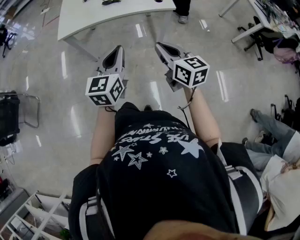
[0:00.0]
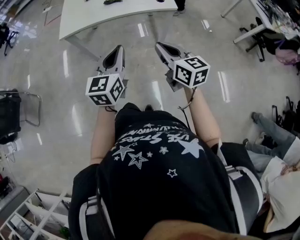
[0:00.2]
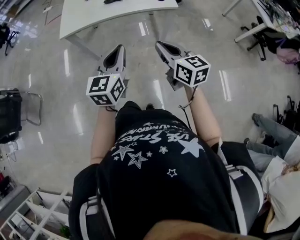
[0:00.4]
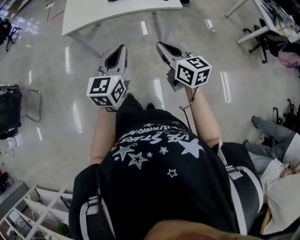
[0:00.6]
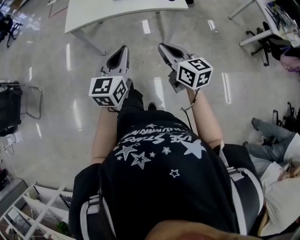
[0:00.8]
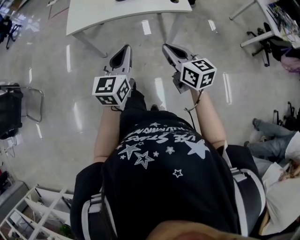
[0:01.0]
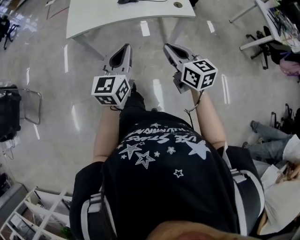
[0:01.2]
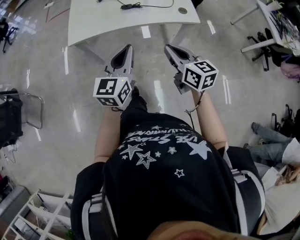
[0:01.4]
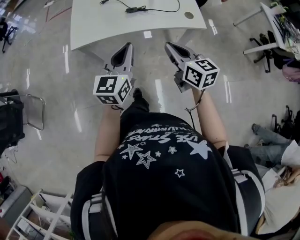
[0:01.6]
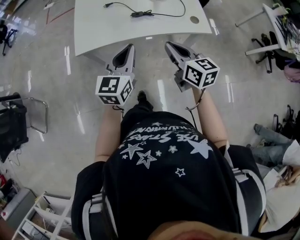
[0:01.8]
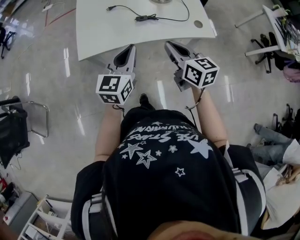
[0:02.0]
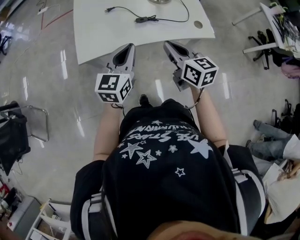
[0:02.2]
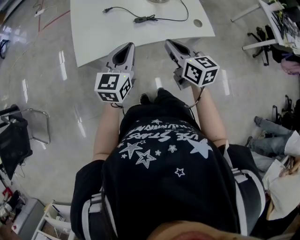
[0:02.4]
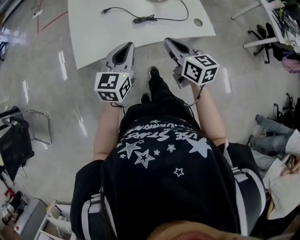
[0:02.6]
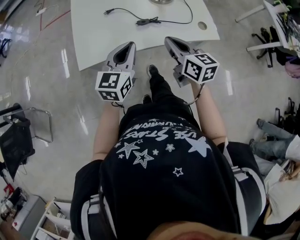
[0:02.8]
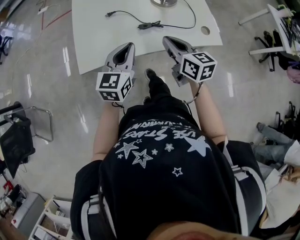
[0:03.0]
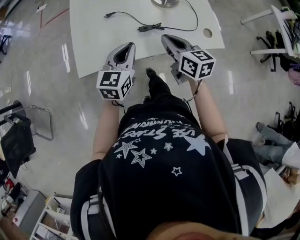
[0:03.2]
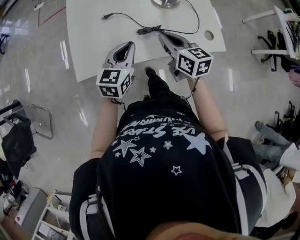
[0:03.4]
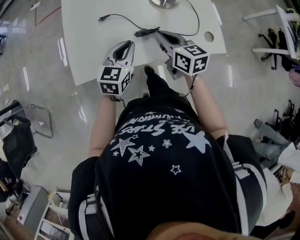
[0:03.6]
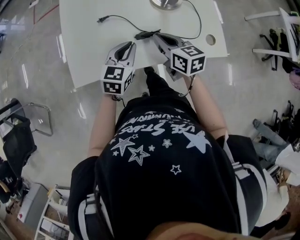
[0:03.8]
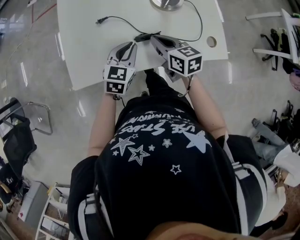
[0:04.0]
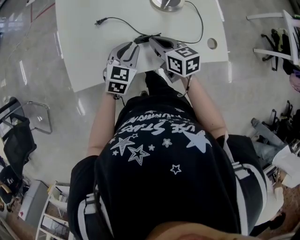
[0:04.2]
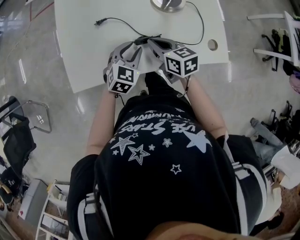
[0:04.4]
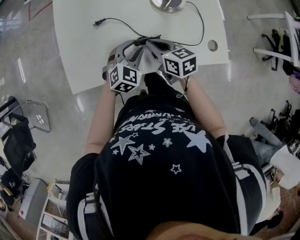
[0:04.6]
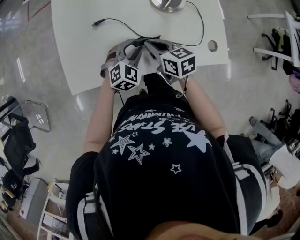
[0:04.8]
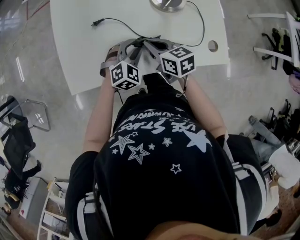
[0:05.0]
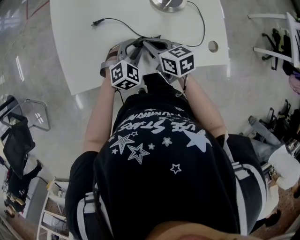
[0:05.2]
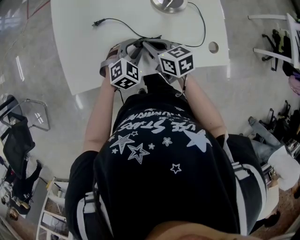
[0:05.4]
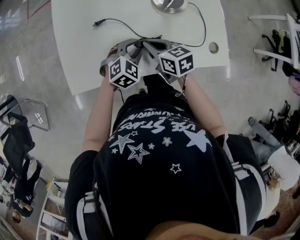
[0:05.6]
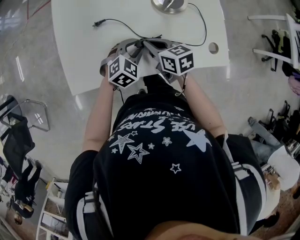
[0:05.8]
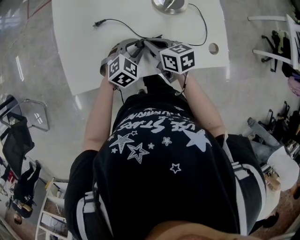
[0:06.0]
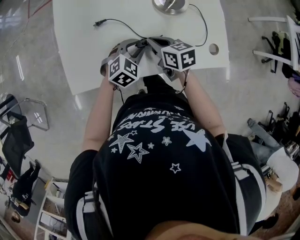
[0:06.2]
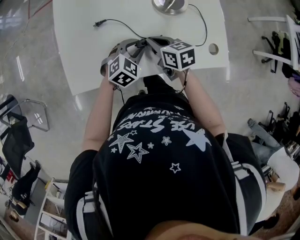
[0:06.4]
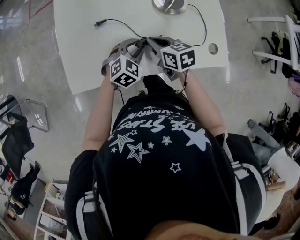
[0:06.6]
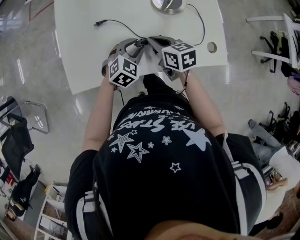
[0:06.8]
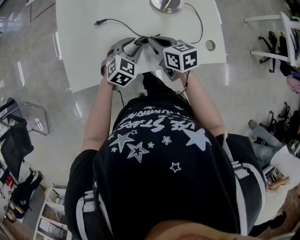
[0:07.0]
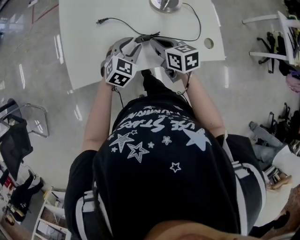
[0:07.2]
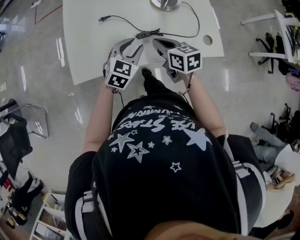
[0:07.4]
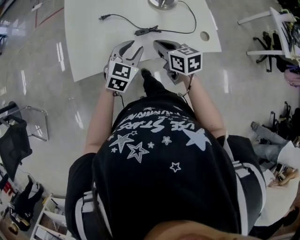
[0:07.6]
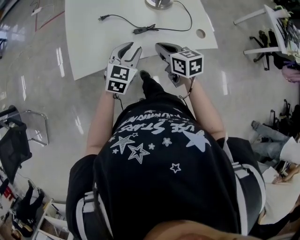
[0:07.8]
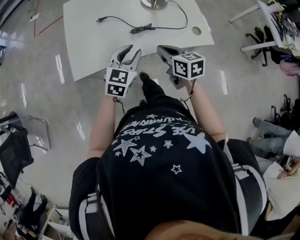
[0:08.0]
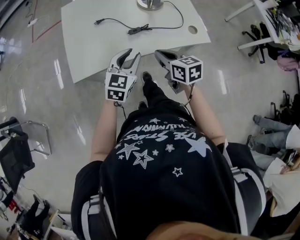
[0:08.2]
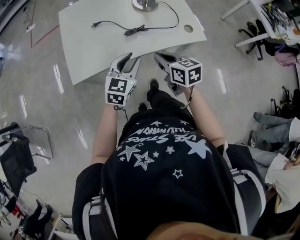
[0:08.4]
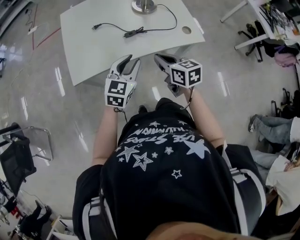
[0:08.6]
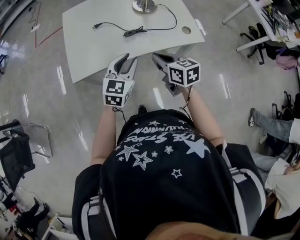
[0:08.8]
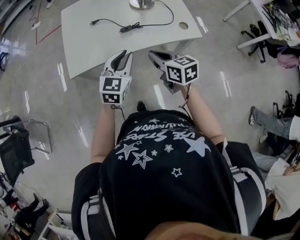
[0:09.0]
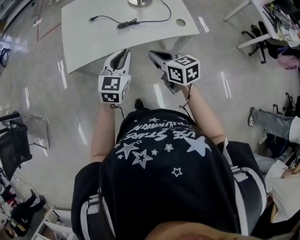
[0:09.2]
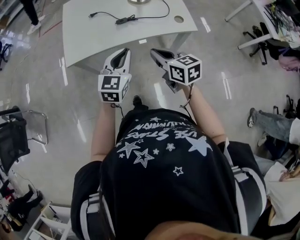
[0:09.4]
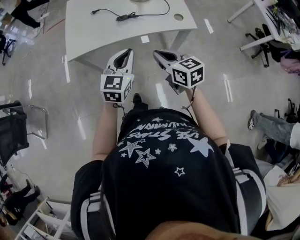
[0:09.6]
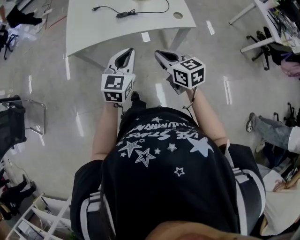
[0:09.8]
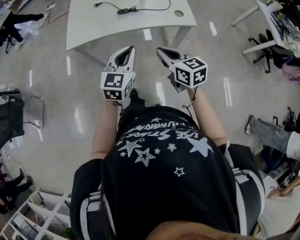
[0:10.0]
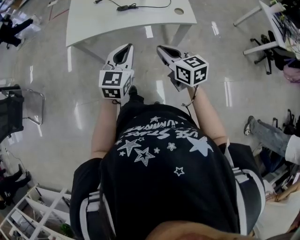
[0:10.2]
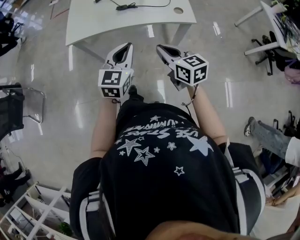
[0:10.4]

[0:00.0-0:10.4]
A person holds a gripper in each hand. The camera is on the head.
0.0 to 1.4 s: The grippers both shift forward and to the left by roughly 15 cm.
1.4 to 3.0 s: The grippers both shift forward by some 25 cm.
3.0 to 4.4 s: The left gripper travels downward, forward and to the right by some 20 cm, turns by approximately 30 degrees, and opens up. Meanwhile the right gripper shifts approximately 20 cm forward and downward.
6.0 to 7.4 s: The right gripper heads backward, covering about 5 cm. The left gripper moves upward and backward, approximately 10 cm.
7.4 to 9.0 s: Both grippers move backward and upward, about 20 cm.
9.0 to 10.4 s: Both grippers travel together backward and to the right, some 15 cm.

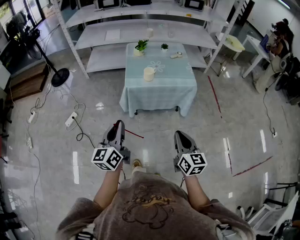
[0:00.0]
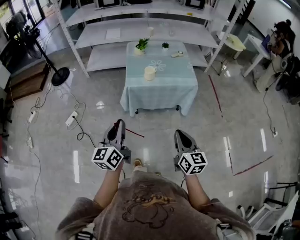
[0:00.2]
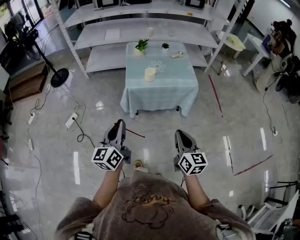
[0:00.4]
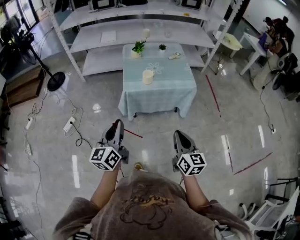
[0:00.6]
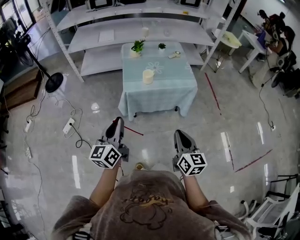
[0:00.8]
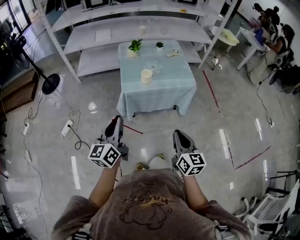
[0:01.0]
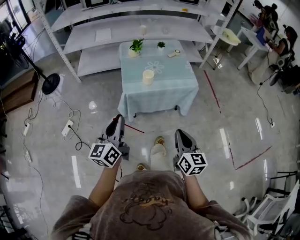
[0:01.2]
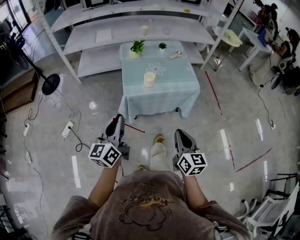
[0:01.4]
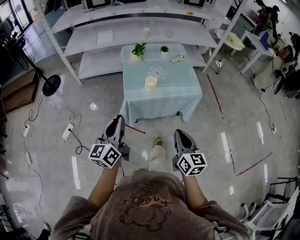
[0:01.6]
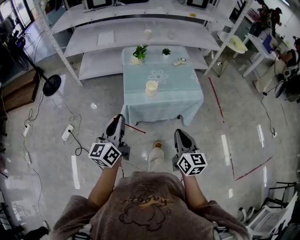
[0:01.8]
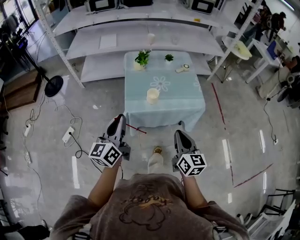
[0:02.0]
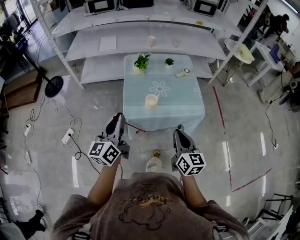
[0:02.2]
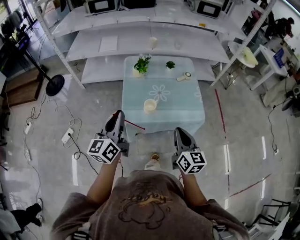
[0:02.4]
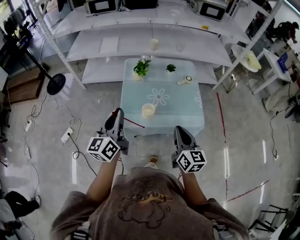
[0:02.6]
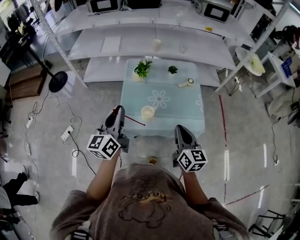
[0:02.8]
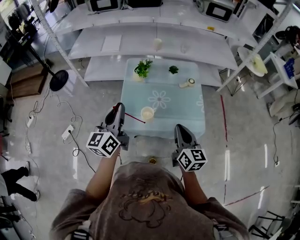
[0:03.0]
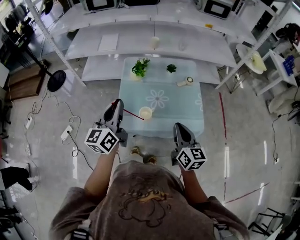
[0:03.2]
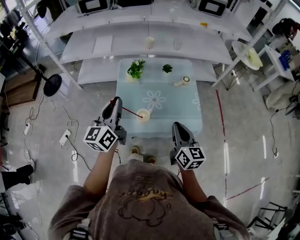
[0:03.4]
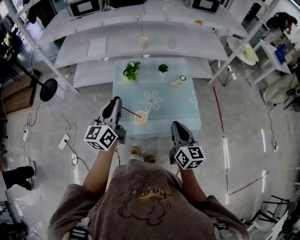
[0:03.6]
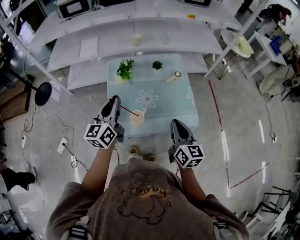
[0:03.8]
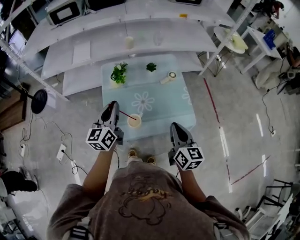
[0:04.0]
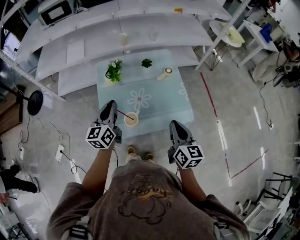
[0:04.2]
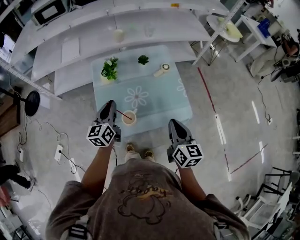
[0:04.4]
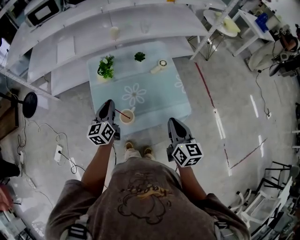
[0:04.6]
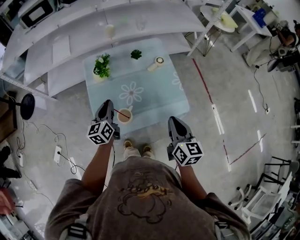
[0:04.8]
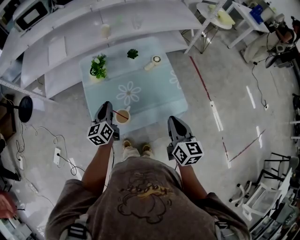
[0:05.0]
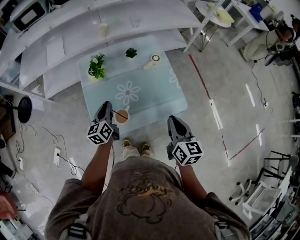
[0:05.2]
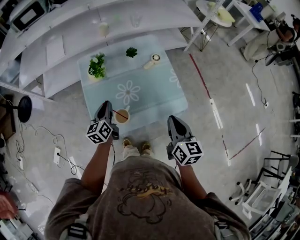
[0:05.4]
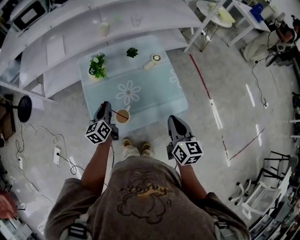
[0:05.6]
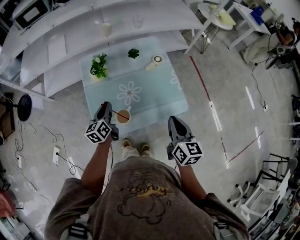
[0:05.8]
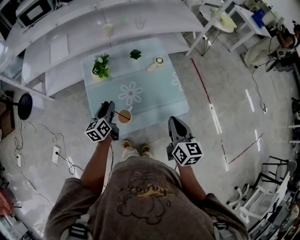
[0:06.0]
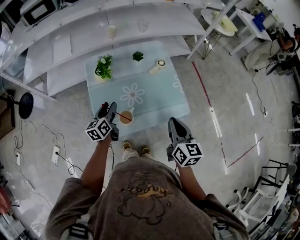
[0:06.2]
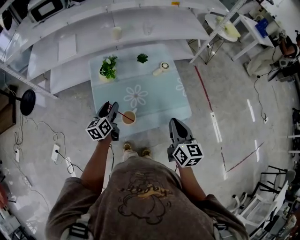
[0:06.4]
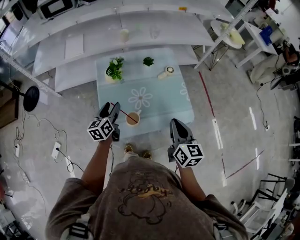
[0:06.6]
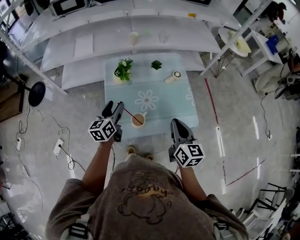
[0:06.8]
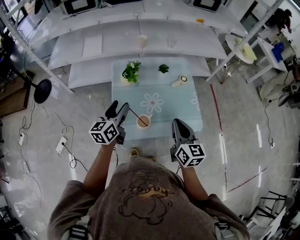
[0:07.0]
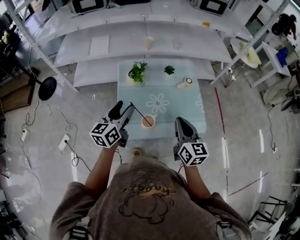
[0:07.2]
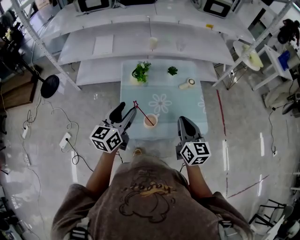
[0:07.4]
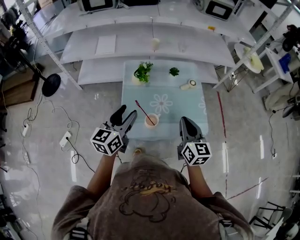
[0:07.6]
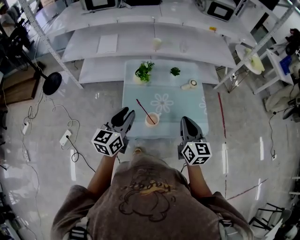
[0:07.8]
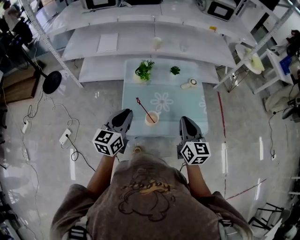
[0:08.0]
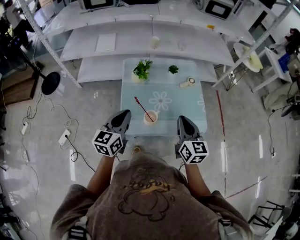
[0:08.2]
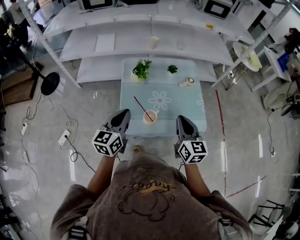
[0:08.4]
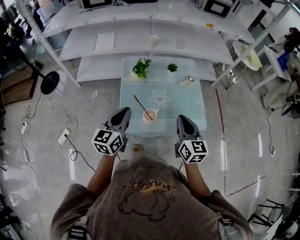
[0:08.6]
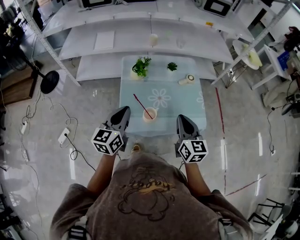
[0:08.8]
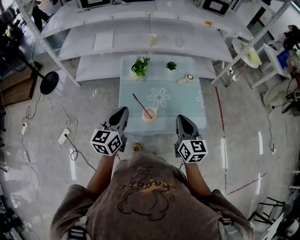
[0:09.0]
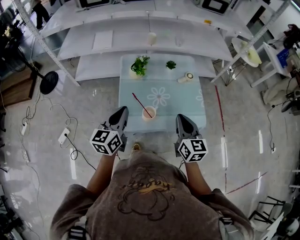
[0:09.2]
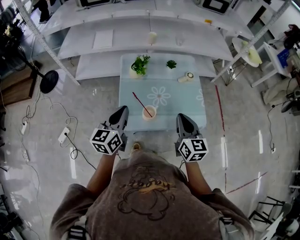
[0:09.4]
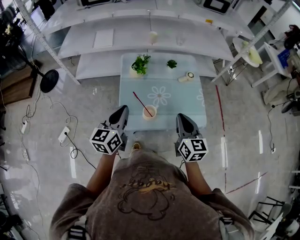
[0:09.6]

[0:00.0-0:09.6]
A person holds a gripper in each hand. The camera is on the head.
0.0 to 1.6 s: Both grippers move forward, approximately 15 cm.
1.6 to 3.2 s: Both grippers travel together forward, roughly 35 cm.
3.2 to 4.8 s: The left gripper goes some 25 cm downward and forward; the right gripper goes approximately 5 cm to the right.
4.8 to 6.4 s: The left gripper opens up.
6.4 to 8.0 s: The right gripper travels to the left by approximately 10 cm, while the left gripper goes some 20 cm upward and backward, and closes.
8.0 to 9.6 s: There are only small adjustments of the grippers.

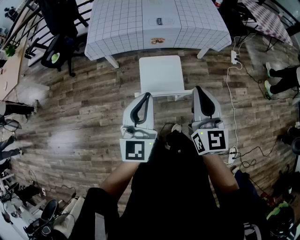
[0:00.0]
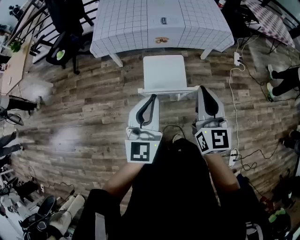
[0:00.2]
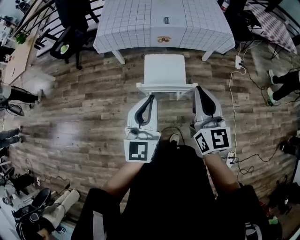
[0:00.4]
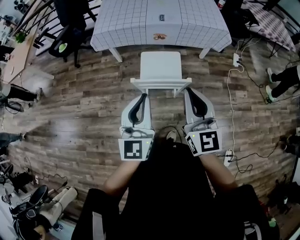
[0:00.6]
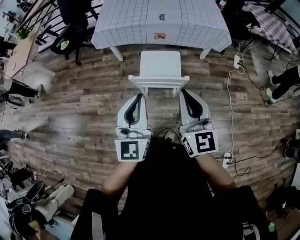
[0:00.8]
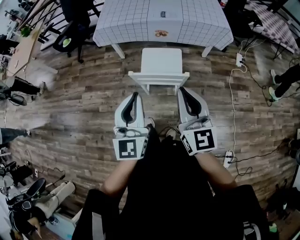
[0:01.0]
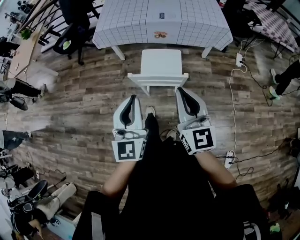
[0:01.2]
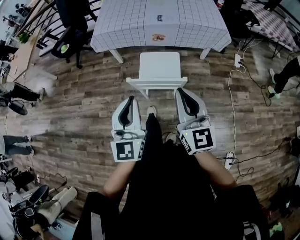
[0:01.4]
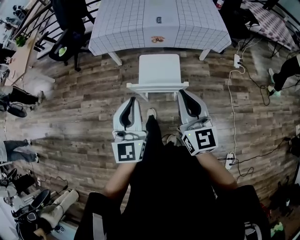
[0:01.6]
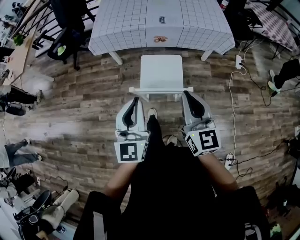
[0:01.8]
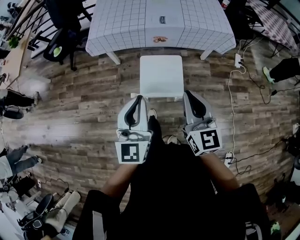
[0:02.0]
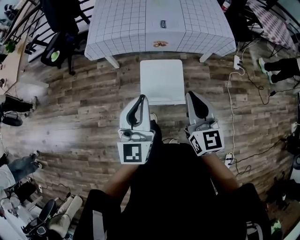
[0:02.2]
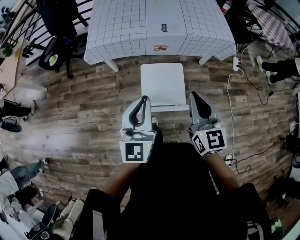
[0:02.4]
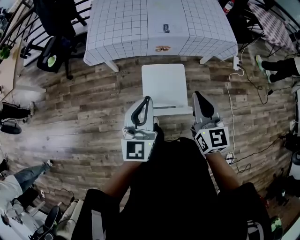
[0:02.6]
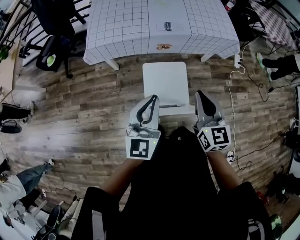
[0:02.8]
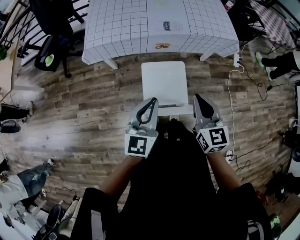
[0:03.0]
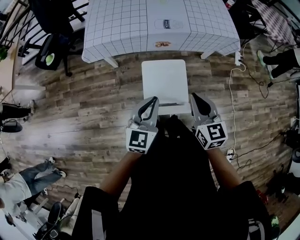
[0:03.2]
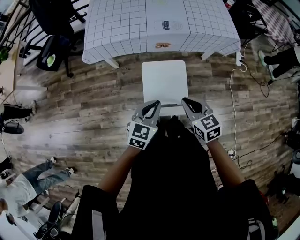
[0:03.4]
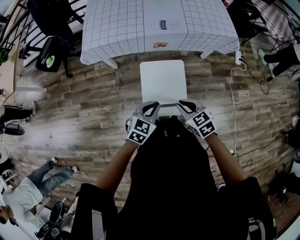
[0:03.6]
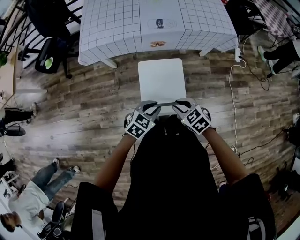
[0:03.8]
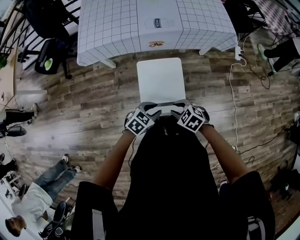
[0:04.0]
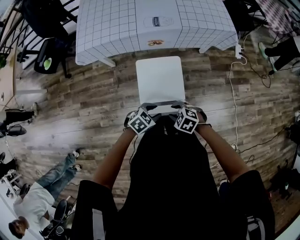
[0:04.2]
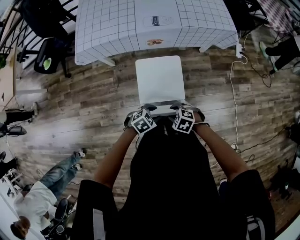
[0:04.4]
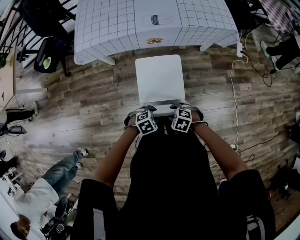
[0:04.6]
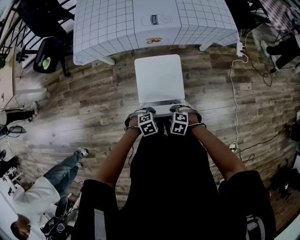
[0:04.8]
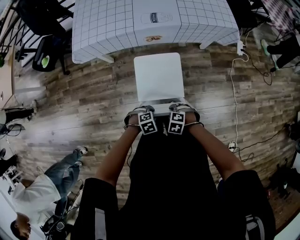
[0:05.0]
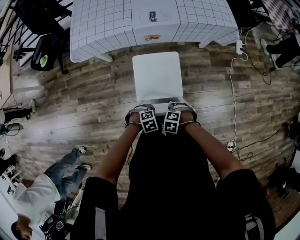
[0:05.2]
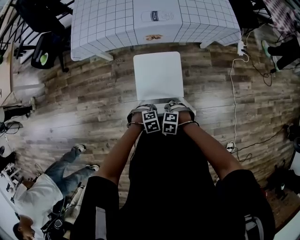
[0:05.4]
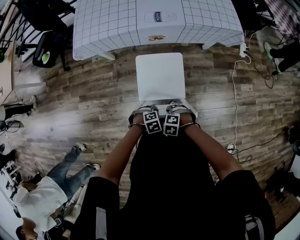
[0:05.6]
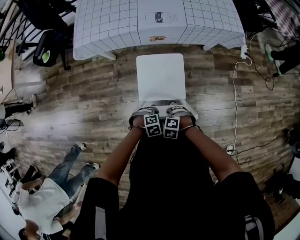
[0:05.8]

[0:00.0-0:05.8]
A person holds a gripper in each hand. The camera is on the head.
0.0 to 1.4 s: Both grippers travel together backward, roughly 10 cm.
1.4 to 2.8 s: The grippers both shift forward by some 25 cm.
2.8 to 4.4 s: Both grippers travel together downward, roughly 30 cm. The left gripper angles its fingers downward, by roughly 50 degrees, and opens. Meanwhile the right gripper points its fingers approximately 50 degrees further downward, and opens up.
4.4 to 5.8 s: The two grippers go some 5 cm downward. The left gripper swivels roughly 20 degrees, and closes up; the right gripper changes its angle by roughly 20 degrees, and closes up.
